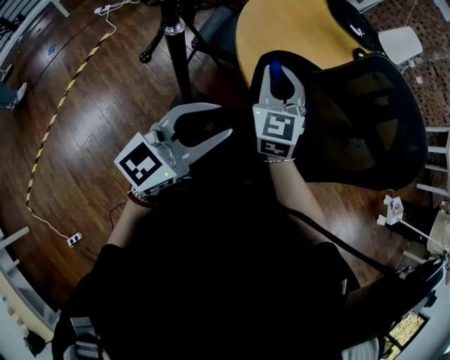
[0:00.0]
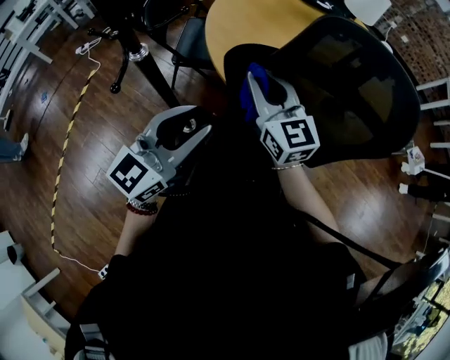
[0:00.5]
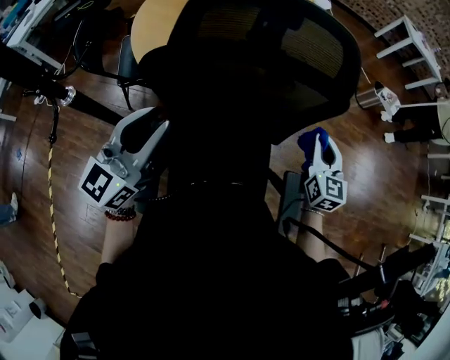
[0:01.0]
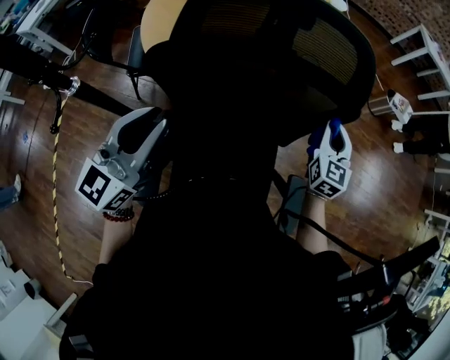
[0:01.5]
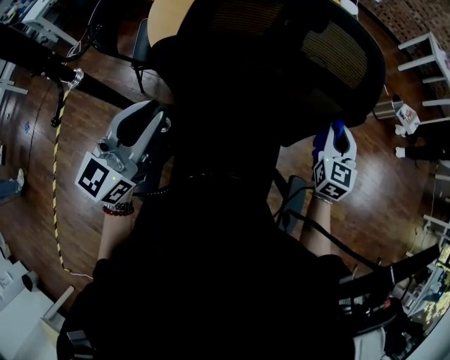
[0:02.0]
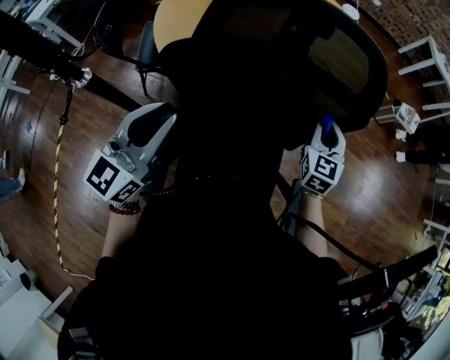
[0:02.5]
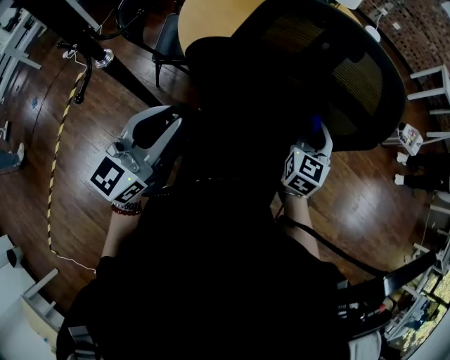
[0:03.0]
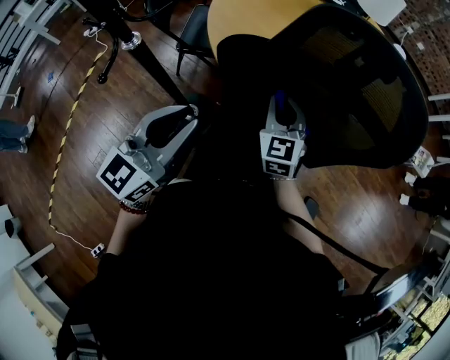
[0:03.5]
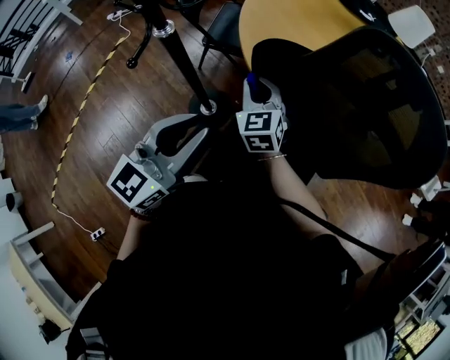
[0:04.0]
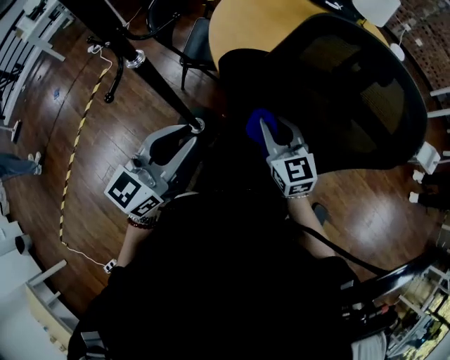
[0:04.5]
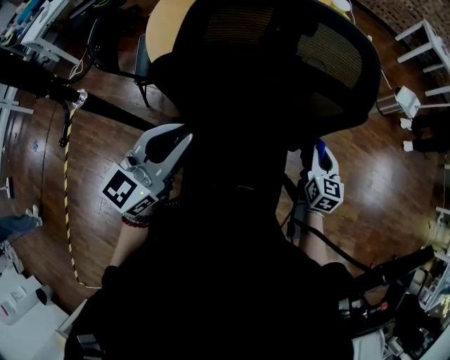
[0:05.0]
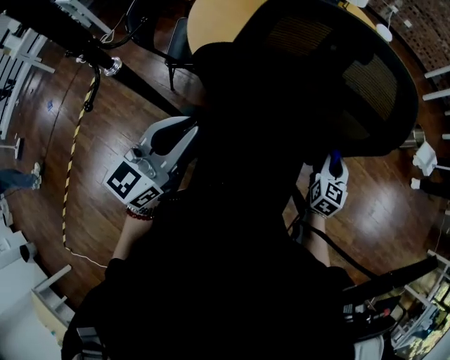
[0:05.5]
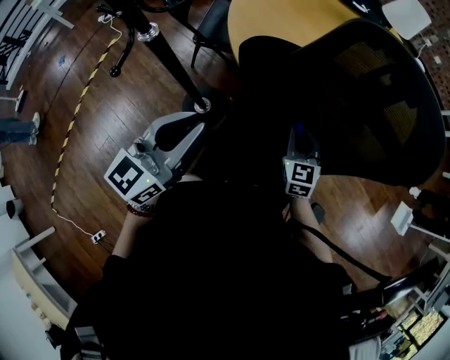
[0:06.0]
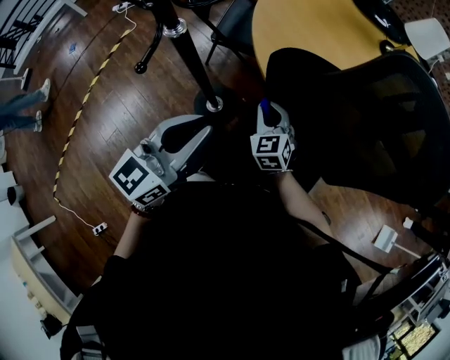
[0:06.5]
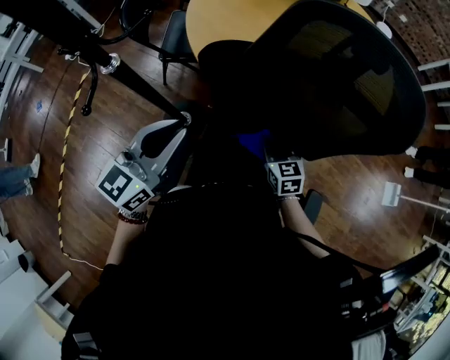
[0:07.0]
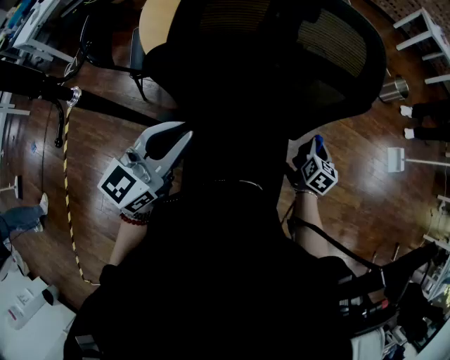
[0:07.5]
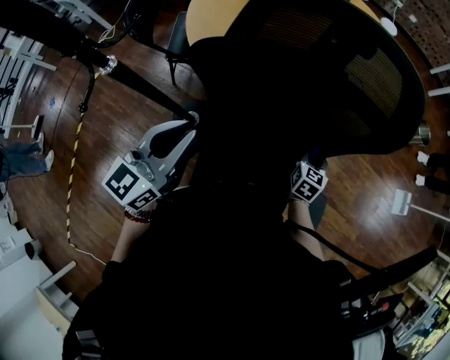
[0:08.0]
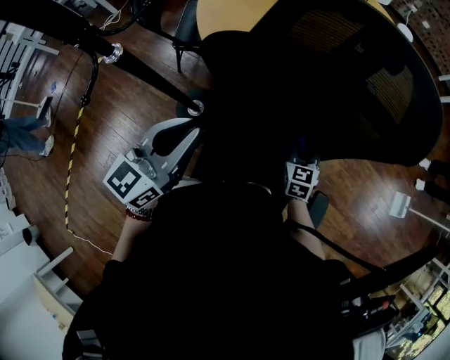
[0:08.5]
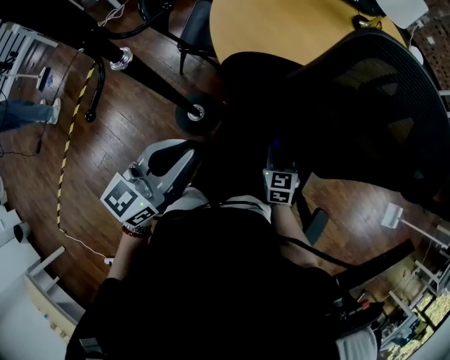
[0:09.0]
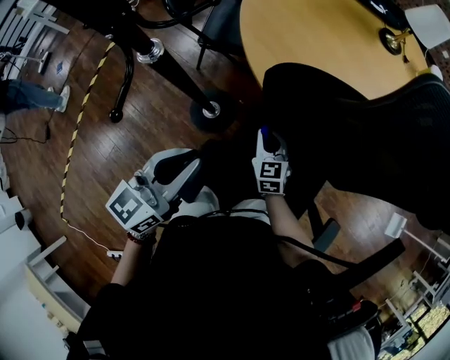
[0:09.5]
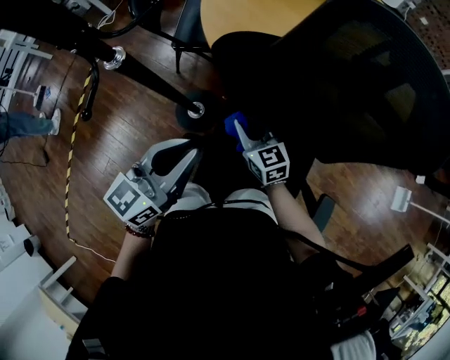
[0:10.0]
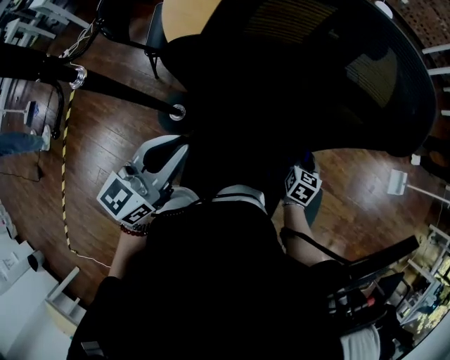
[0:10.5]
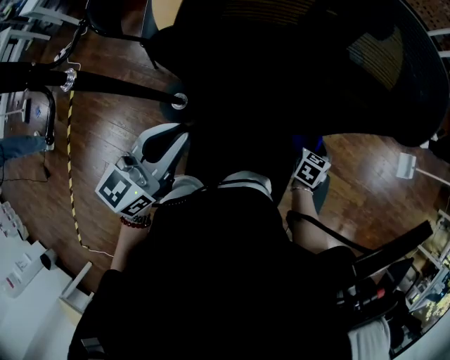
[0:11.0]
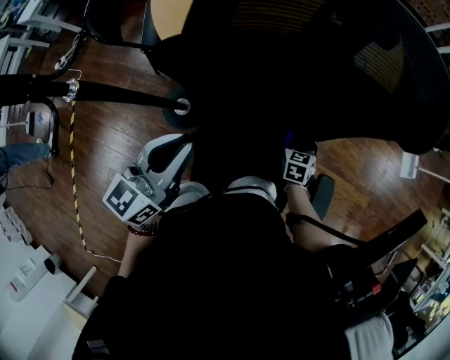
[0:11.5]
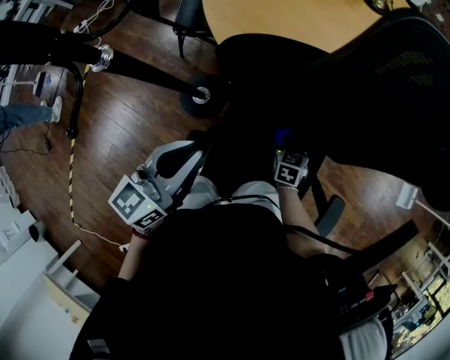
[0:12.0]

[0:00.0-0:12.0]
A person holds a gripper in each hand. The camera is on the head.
0.0 to 2.0 s: The right gripper changes place by approximately 50 cm, and turns by approximately 40 degrees, while the left gripper moves some 5 cm.
2.0 to 4.0 s: The left gripper ends up some 10 cm from where it was, while the right gripper ends up roughly 50 cm from where it was, and changes its angle by roughly 40 degrees.
6.0 to 8.0 s: The right gripper shifts by about 20 cm, and rotates some 40 degrees.
8.0 to 10.0 s: The right gripper changes place by roughly 35 cm, and rotates about 50 degrees.
10.0 to 12.0 s: The right gripper turns by roughly 40 degrees.

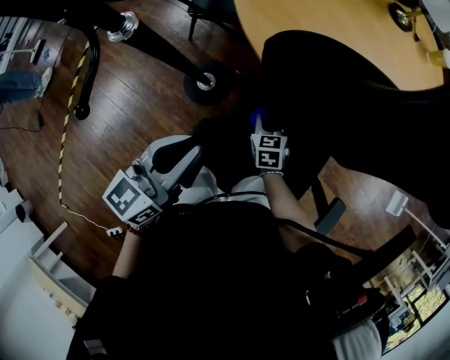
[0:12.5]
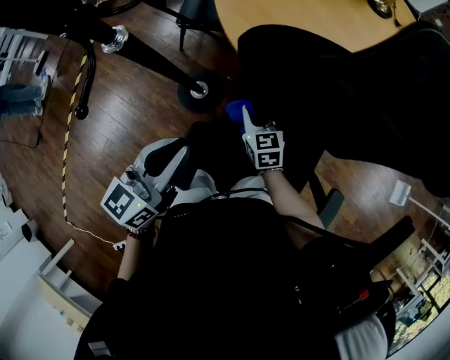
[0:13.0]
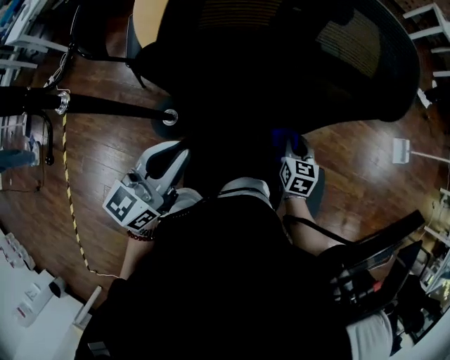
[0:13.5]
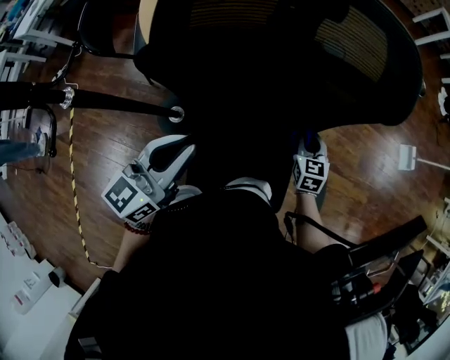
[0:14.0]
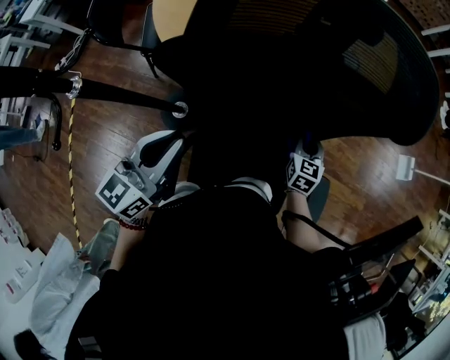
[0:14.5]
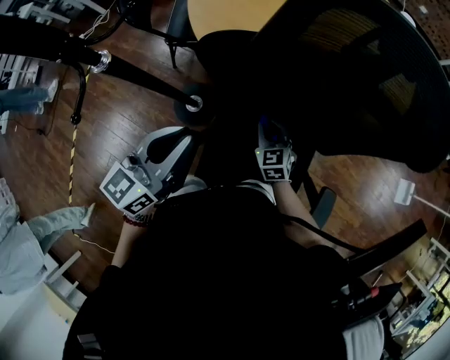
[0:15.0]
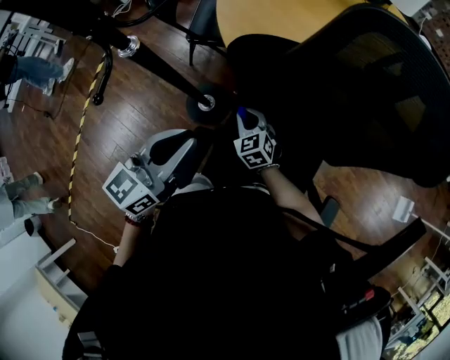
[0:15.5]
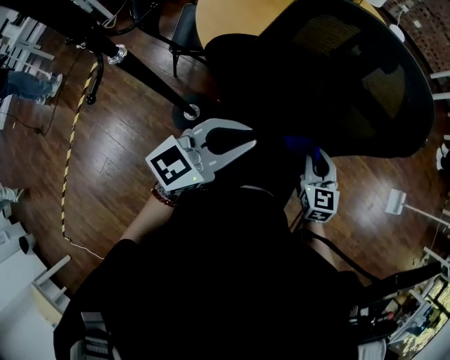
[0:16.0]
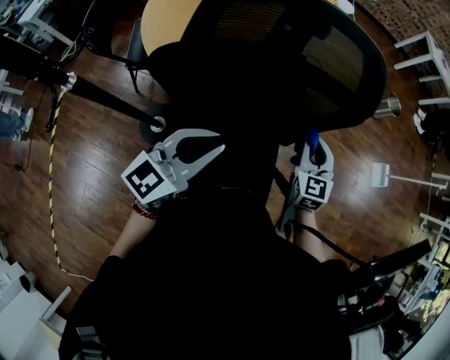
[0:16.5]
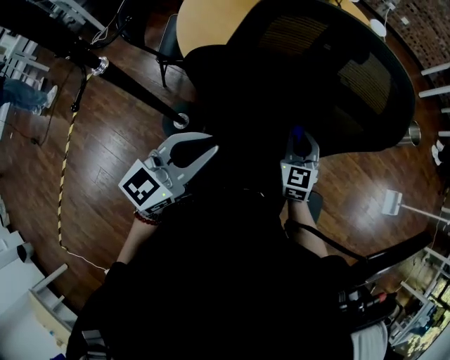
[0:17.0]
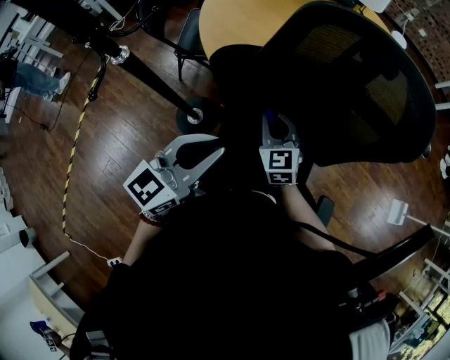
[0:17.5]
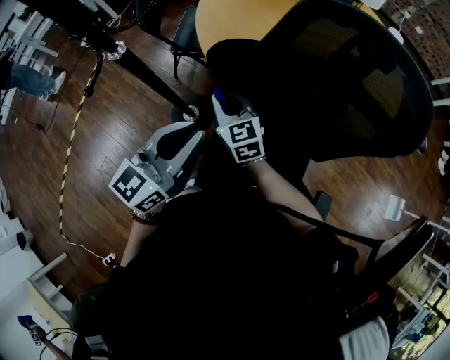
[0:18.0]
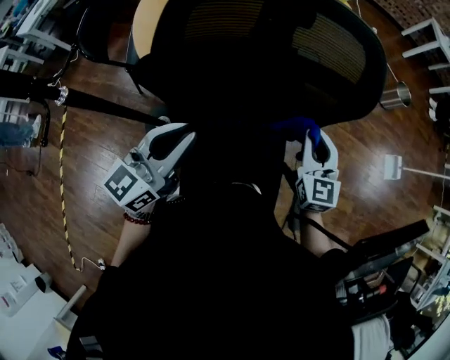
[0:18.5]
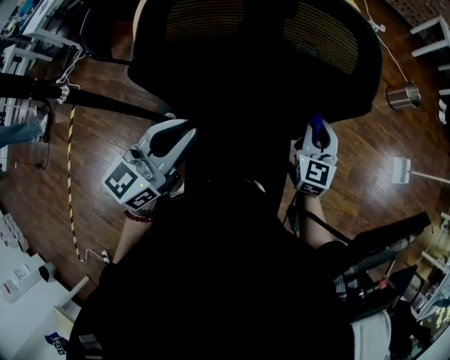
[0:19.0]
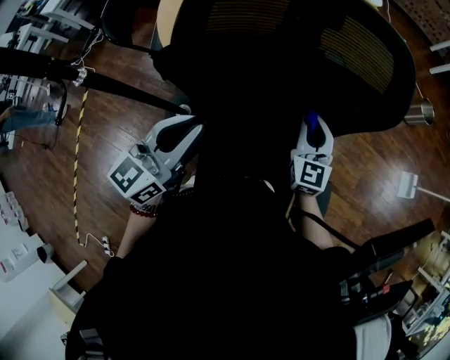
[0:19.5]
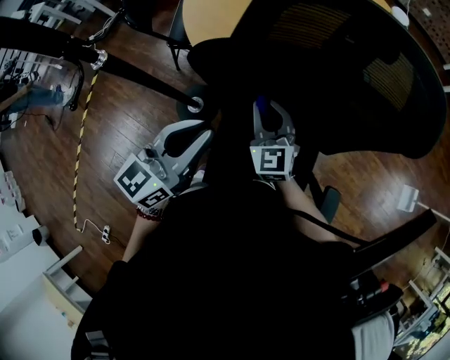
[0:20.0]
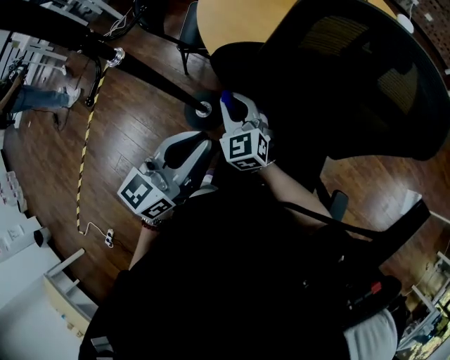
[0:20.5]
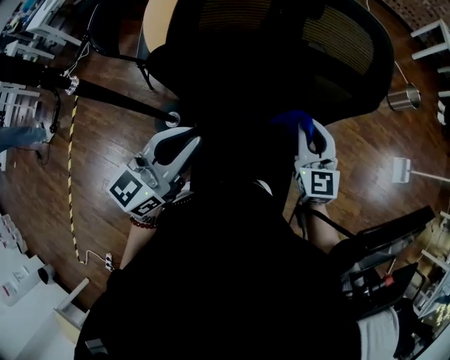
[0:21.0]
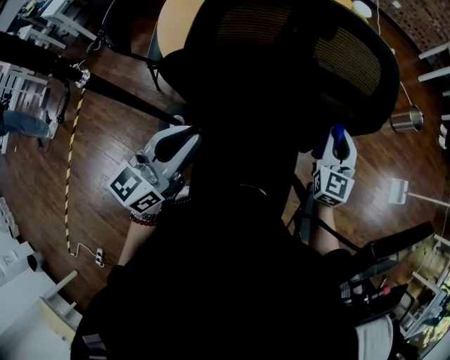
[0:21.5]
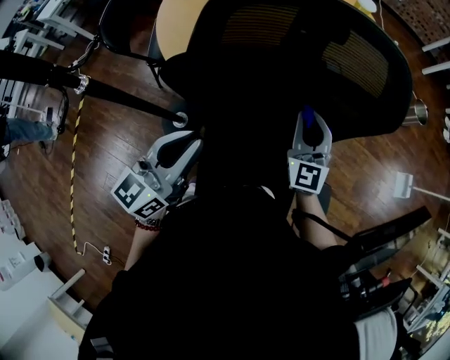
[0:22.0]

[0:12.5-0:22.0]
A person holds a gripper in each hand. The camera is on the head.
12.5 to 14.5 s: The right gripper changes place by about 30 cm, and changes its angle by approximately 40 degrees. Meanwhile the left gripper shifts by roughly 10 cm.
14.5 to 16.5 s: The right gripper goes some 15 cm upward, and turns by about 20 degrees, while the left gripper changes place by about 15 cm, and rotates some 20 degrees.
16.5 to 18.0 s: The right gripper changes place by some 40 cm, and changes its angle by about 40 degrees, while the left gripper moves roughly 15 cm, and rotates approximately 30 degrees.
18.0 to 20.0 s: The right gripper rotates about 20 degrees.
20.0 to 22.0 s: The right gripper swings left and right, approximately 40 cm each way, with 2 reversals, and rotates approximately 20 degrees.

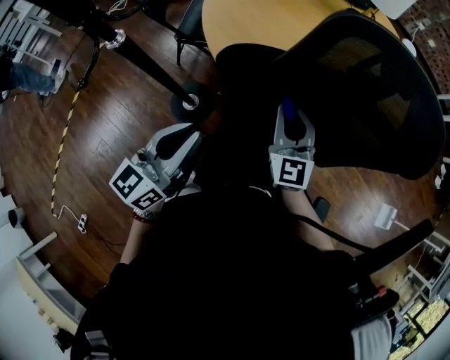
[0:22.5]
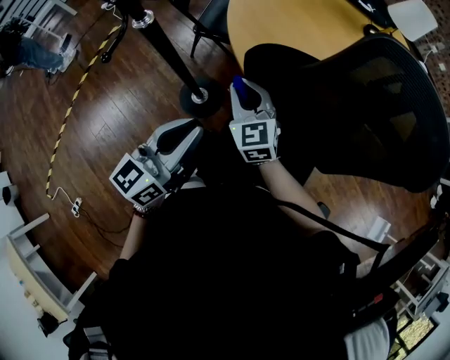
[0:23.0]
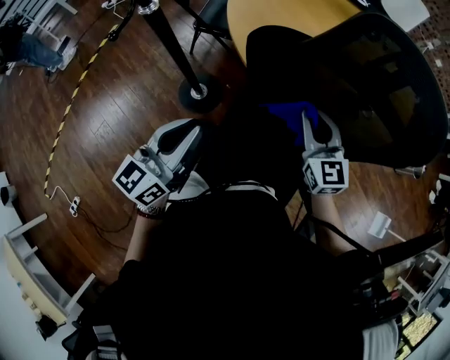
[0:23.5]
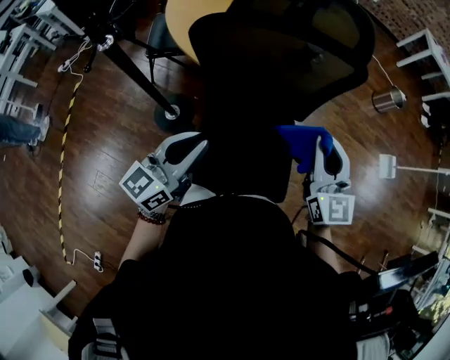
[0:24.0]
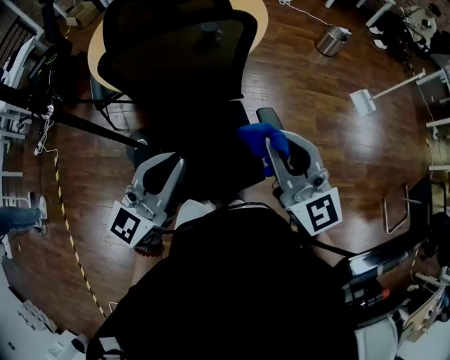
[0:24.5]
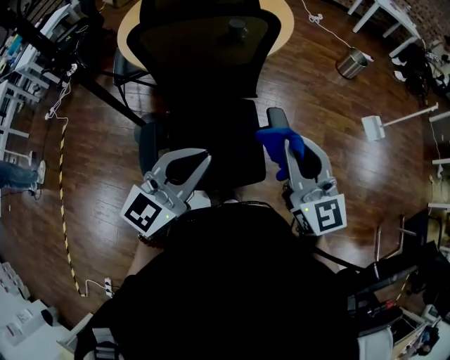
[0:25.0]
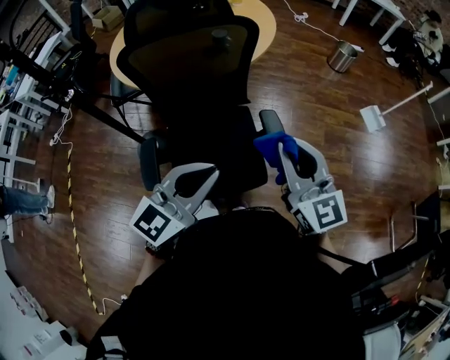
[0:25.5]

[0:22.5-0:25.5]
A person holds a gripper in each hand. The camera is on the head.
22.5 to 24.0 s: The left gripper changes place by about 15 cm; the right gripper shifts by some 30 cm.
24.0 to 25.5 s: The left gripper shifts approximately 25 cm to the right and backward, and swivels roughly 30 degrees, while the right gripper goes about 20 cm backward and to the right.

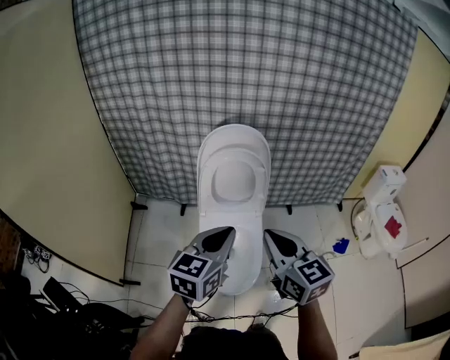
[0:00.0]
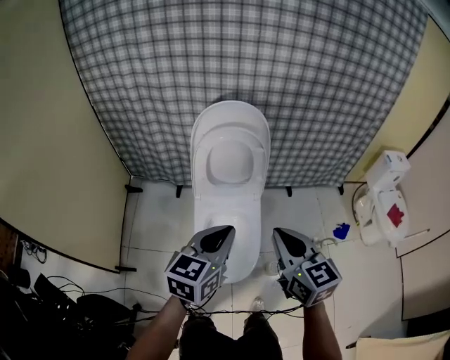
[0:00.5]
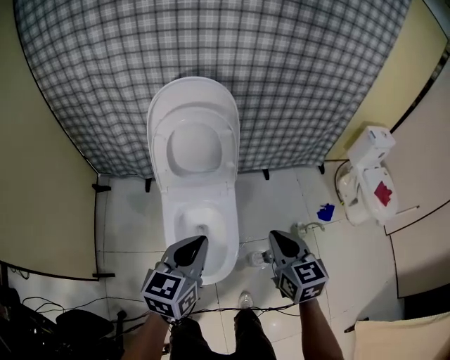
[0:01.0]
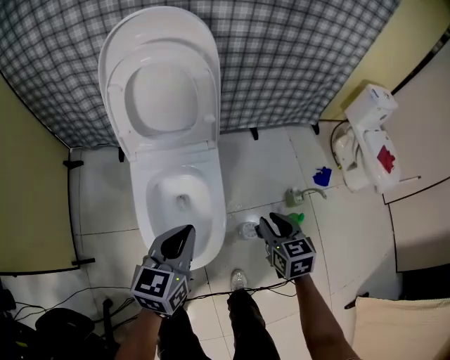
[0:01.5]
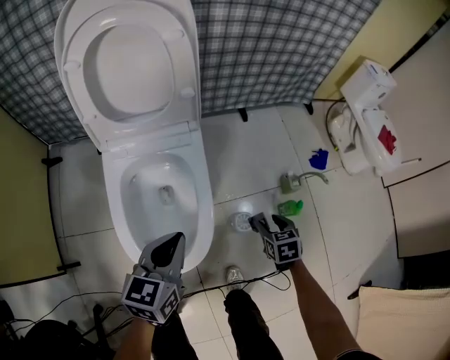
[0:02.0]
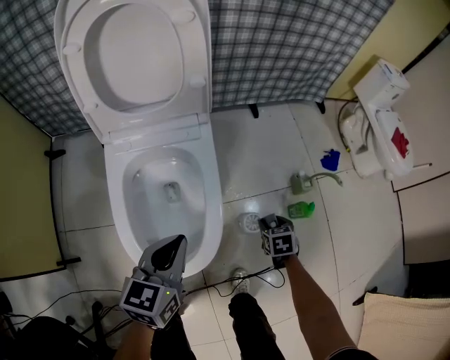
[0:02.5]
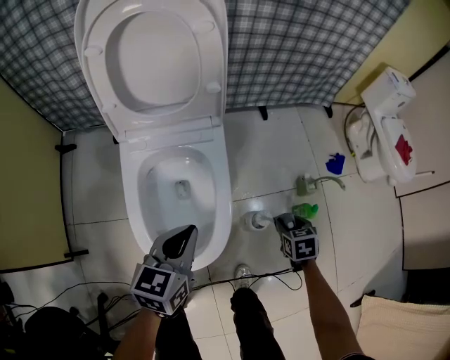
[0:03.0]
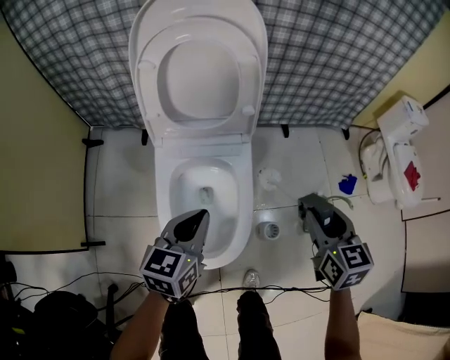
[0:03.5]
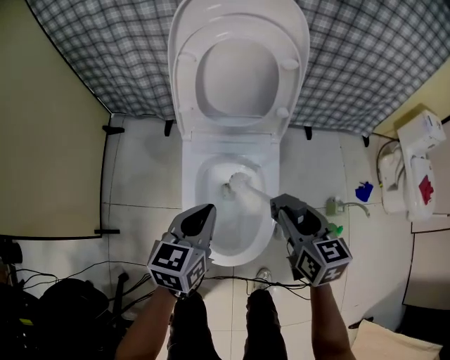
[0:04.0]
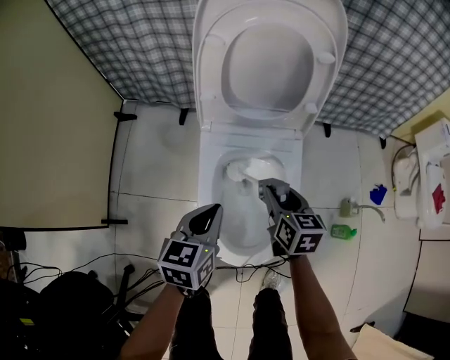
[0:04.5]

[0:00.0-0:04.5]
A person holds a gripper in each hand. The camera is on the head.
0.0 to 2.0 s: The left gripper moves downward, about 25 cm; the right gripper moves downward and to the right, some 60 cm, angles its fingers downward, by roughly 50 degrees, and opens its fingers.
2.0 to 4.5 s: The right gripper swings up and down, about 35 cm each way, with 2 reversals, and swivels approximately 30 degrees. Meanwhile the left gripper moves to the left, roughly 15 cm.
